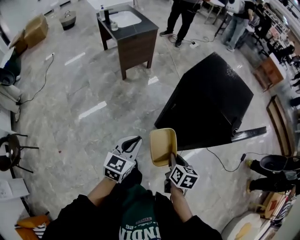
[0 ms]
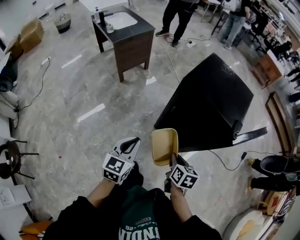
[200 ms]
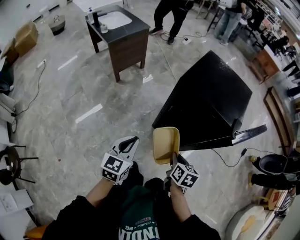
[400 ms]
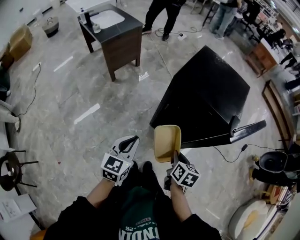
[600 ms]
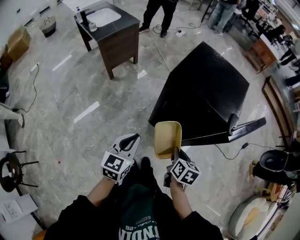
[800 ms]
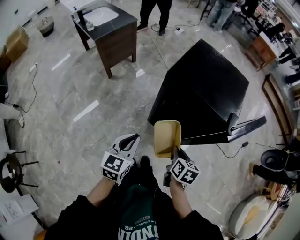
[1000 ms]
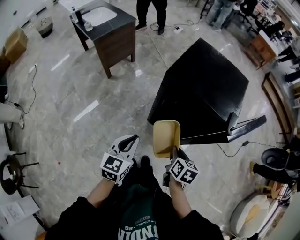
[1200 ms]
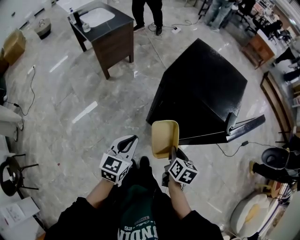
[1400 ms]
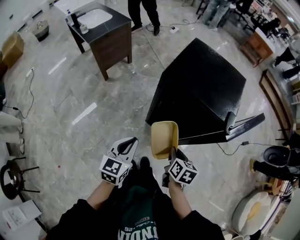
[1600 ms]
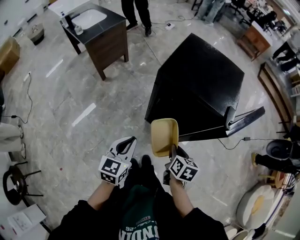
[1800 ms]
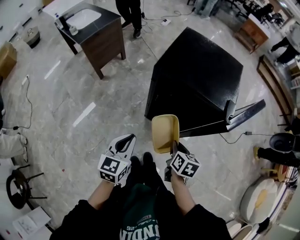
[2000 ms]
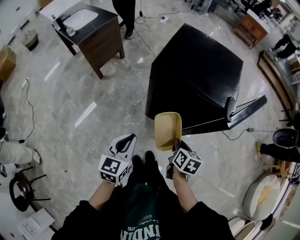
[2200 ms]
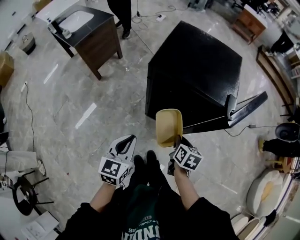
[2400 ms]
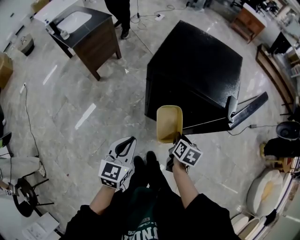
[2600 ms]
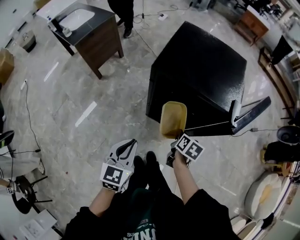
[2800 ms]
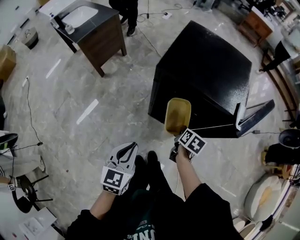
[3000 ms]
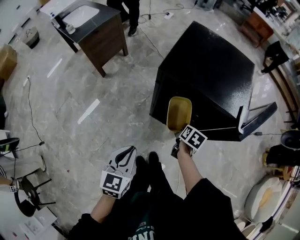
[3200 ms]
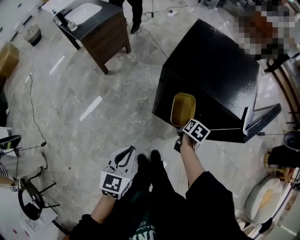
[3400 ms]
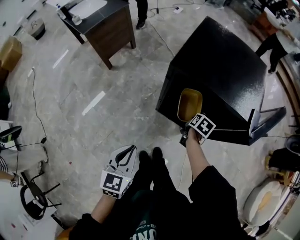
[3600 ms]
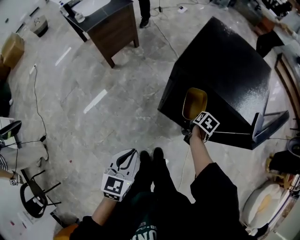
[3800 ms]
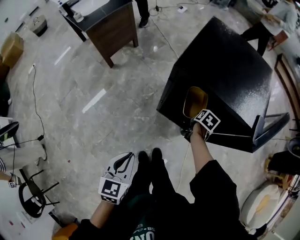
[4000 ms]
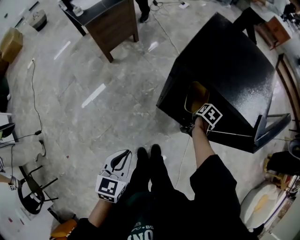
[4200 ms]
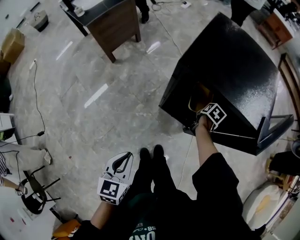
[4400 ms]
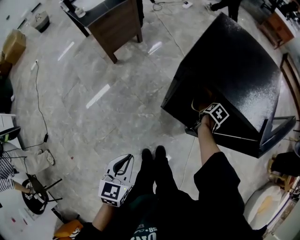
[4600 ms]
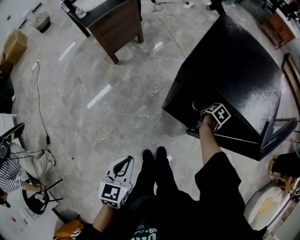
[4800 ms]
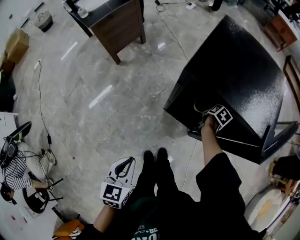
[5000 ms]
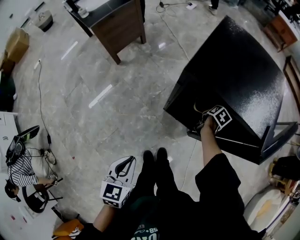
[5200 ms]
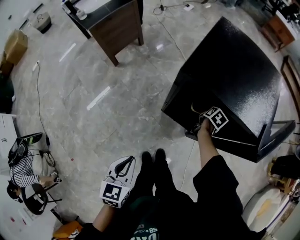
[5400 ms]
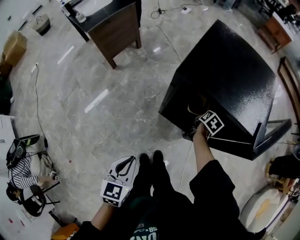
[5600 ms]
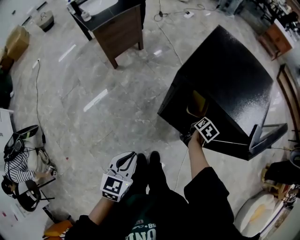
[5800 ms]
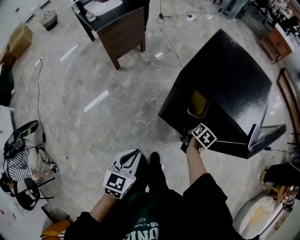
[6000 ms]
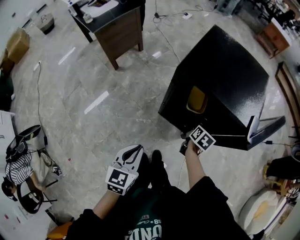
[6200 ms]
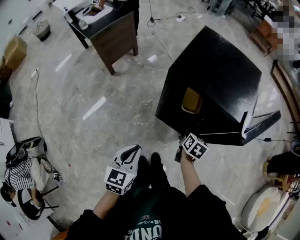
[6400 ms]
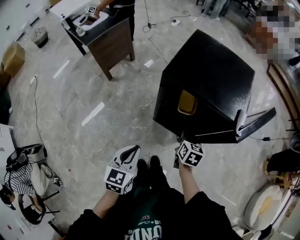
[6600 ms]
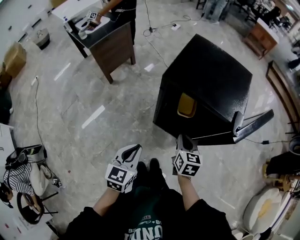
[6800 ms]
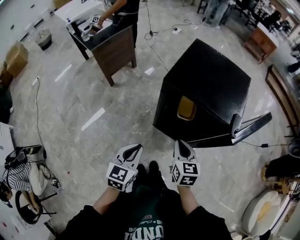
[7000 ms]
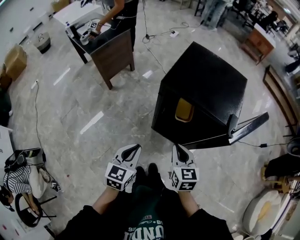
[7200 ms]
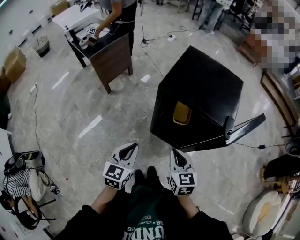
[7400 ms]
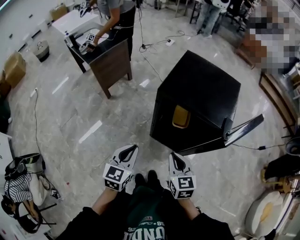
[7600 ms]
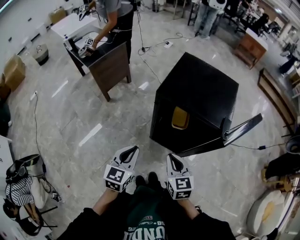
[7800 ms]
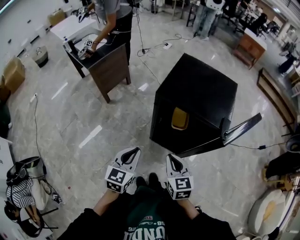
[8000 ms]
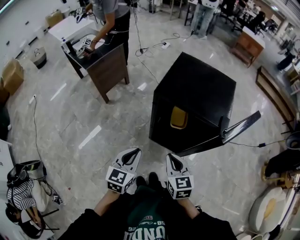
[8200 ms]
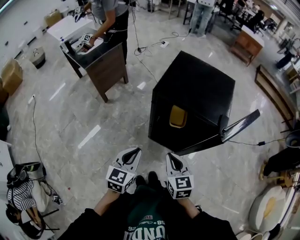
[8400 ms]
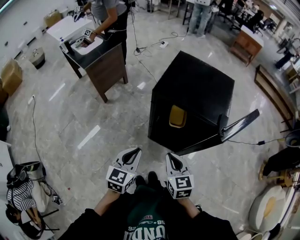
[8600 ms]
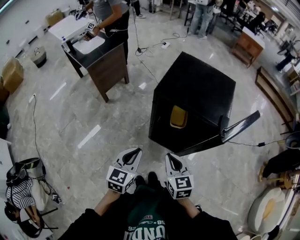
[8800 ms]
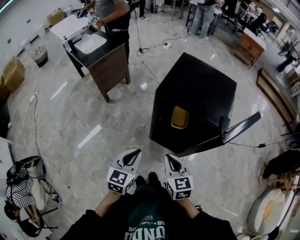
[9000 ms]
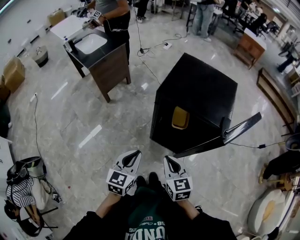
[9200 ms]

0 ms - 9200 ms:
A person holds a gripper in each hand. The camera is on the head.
0 ms - 1600 ms: The grippers both shift forward by some 5 cm.
1600 ms - 3000 ms: The right gripper heads forward and downward, covering roughly 15 cm.
3000 ms - 4600 ms: The left gripper goes some 10 cm downward and backward. Meanwhile the right gripper goes some 20 cm forward and downward.
4600 ms - 6200 ms: The right gripper shifts some 10 cm backward and upward, while the left gripper shifts by approximately 5 cm.
6200 ms - 7600 ms: The left gripper travels upward by roughly 5 cm. Meanwhile the right gripper moves upward, backward and to the left, some 25 cm, and turns by approximately 50 degrees.
7600 ms - 9200 ms: The grippers make only small movements.

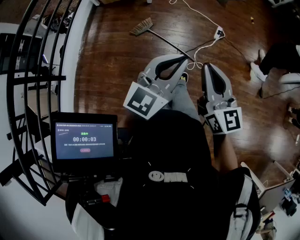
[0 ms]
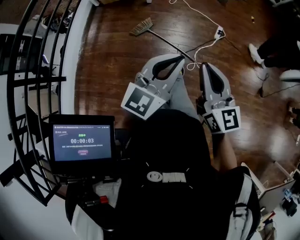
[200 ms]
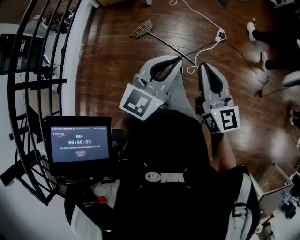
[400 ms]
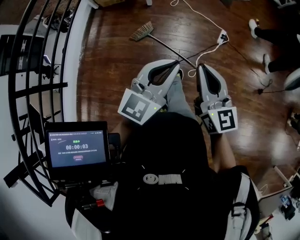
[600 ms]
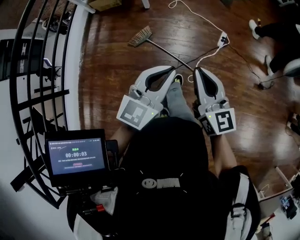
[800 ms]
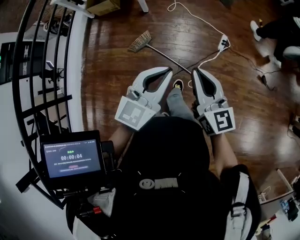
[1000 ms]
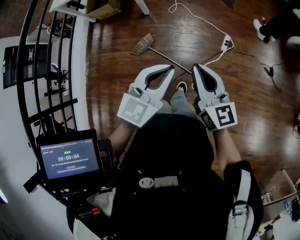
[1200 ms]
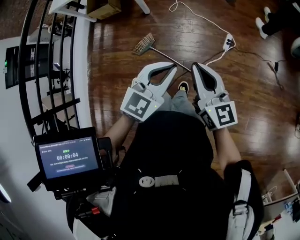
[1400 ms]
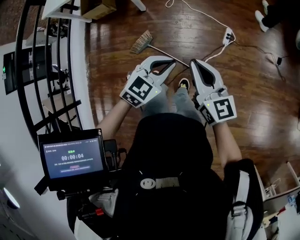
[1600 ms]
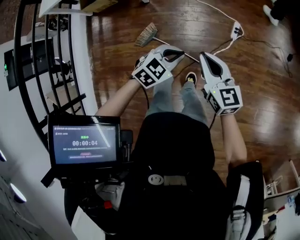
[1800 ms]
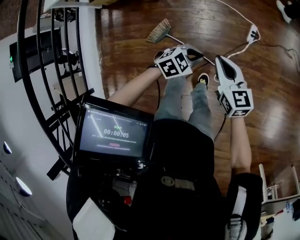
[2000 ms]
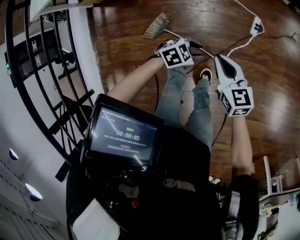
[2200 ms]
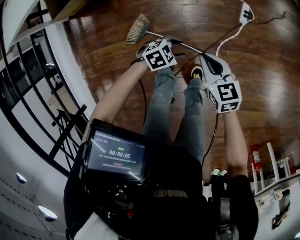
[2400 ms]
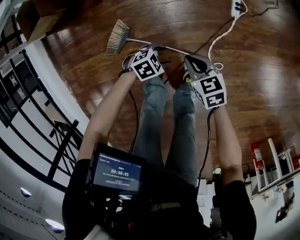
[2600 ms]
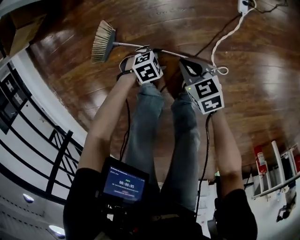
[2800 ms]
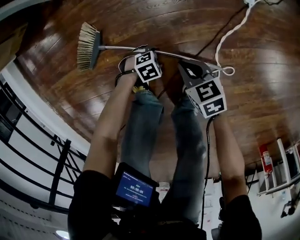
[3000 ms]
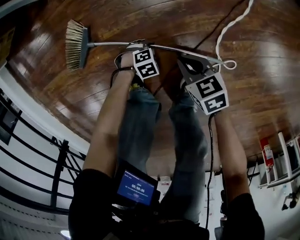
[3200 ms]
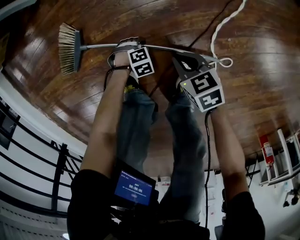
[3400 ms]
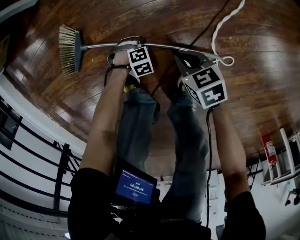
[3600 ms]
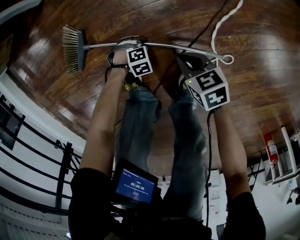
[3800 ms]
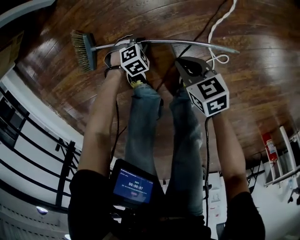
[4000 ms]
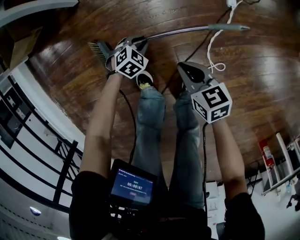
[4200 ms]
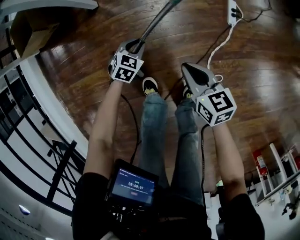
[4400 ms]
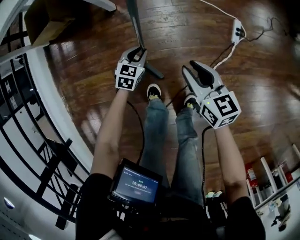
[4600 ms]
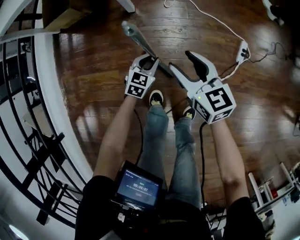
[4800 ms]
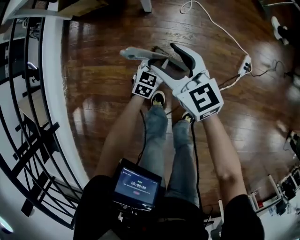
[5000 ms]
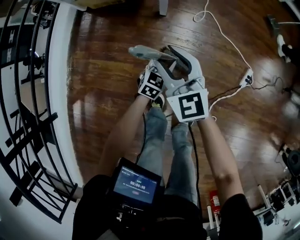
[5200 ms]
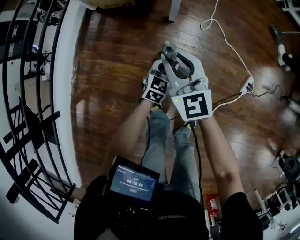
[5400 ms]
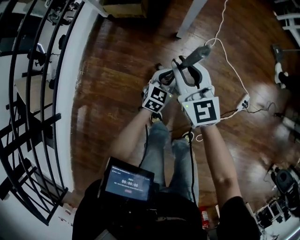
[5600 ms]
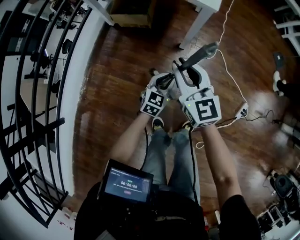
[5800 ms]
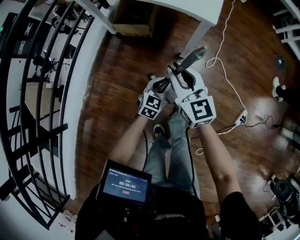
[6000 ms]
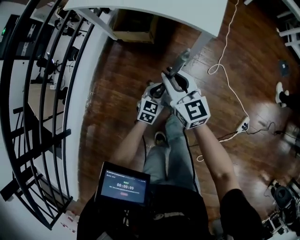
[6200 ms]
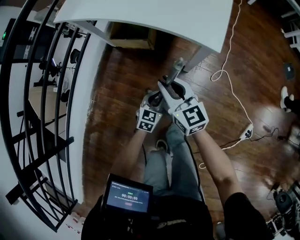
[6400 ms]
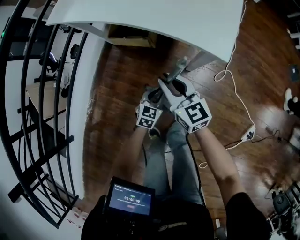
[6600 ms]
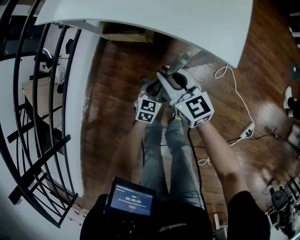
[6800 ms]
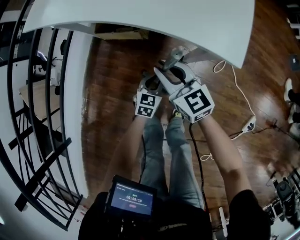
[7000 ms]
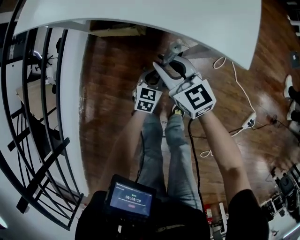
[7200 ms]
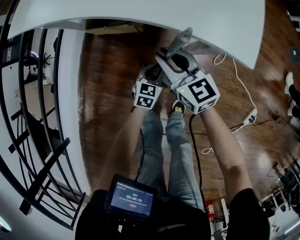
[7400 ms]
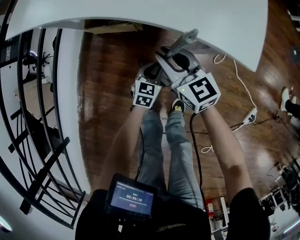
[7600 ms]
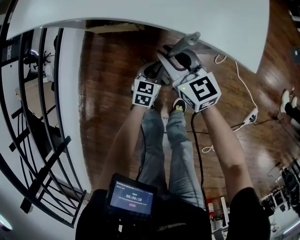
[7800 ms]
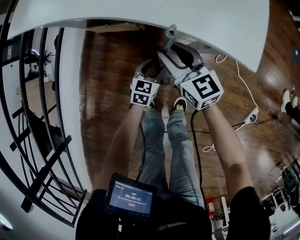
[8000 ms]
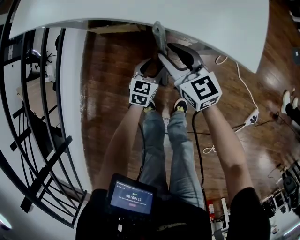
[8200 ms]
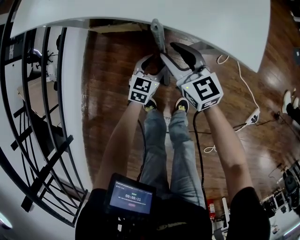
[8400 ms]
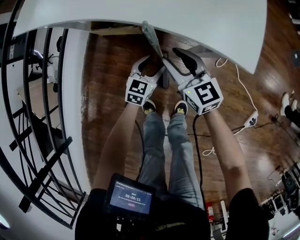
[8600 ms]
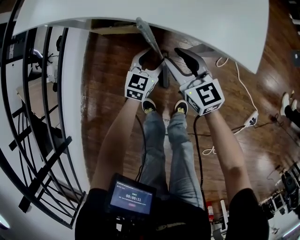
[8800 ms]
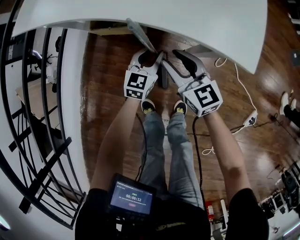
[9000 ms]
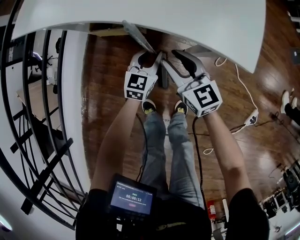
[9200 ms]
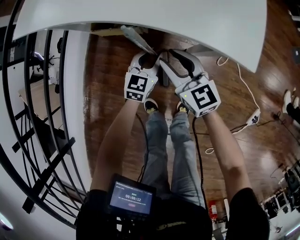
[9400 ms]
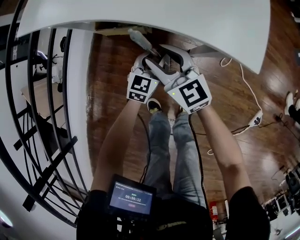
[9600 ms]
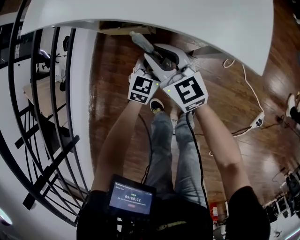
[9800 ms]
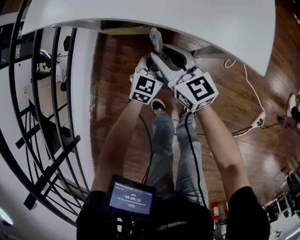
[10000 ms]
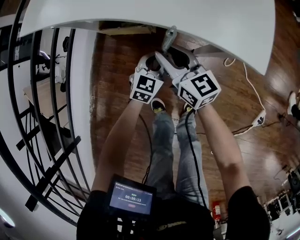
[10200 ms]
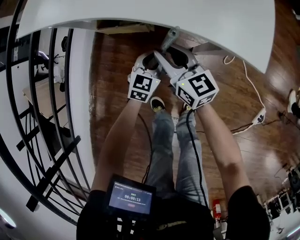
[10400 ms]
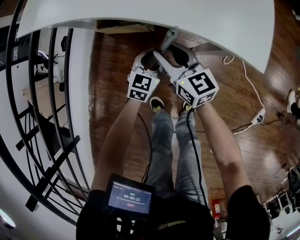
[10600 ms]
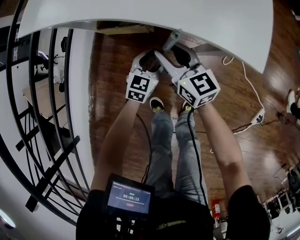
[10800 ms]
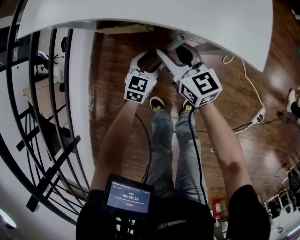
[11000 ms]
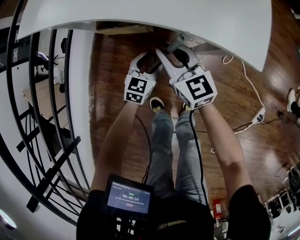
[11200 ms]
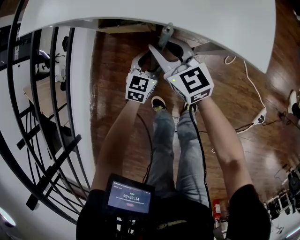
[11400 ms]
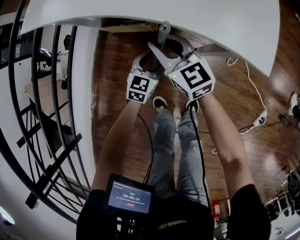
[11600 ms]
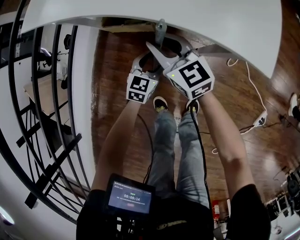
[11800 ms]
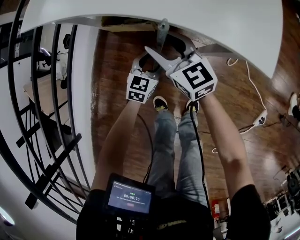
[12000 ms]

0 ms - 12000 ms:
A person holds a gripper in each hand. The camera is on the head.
0 ms - 1600 ms: The grippers both shift backward by about 15 cm. The left gripper points its fingers some 30 degrees further downward.
1600 ms - 3000 ms: The grippers both shift downward by roughly 70 cm. The left gripper swivels approximately 60 degrees, and opens, while the right gripper tips its fingers downward by about 40 degrees.
3000 ms - 4400 ms: The two grippers go about 25 cm upward. The right gripper swivels some 20 degrees. Meanwhile the left gripper rotates roughly 50 degrees, and closes up.
4400 ms - 6000 ms: The left gripper changes place by approximately 40 cm, and changes its angle by roughly 40 degrees. Meanwhile the right gripper ends up some 60 cm from where it was, turns by approximately 50 degrees, and opens, then closes once more.
6000 ms - 7600 ms: Both grippers travel together forward and downward, roughly 30 cm.
7600 ms - 9000 ms: The left gripper travels upward and forward by roughly 10 cm, and opens, then closes once more.
9000 ms - 10400 ms: The right gripper shifts some 5 cm to the left.
10400 ms - 12000 ms: The left gripper opens, while the right gripper ends up roughly 5 cm from where it was, and opens up.

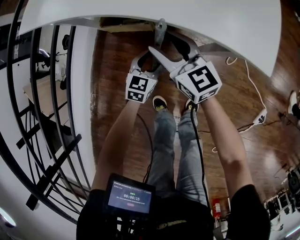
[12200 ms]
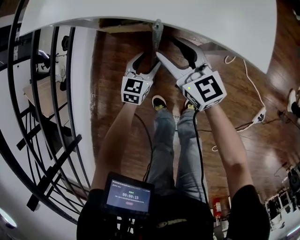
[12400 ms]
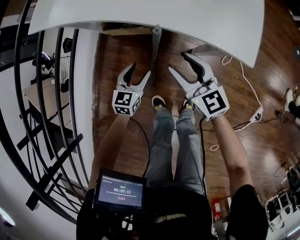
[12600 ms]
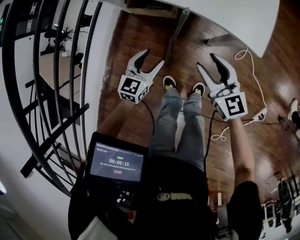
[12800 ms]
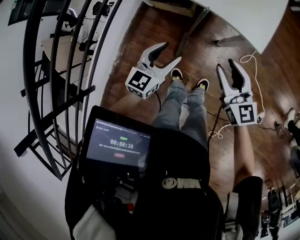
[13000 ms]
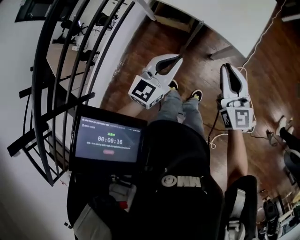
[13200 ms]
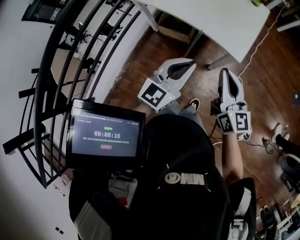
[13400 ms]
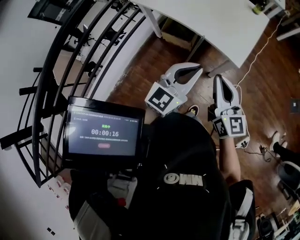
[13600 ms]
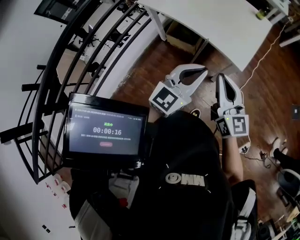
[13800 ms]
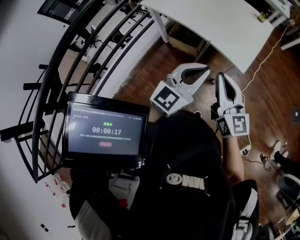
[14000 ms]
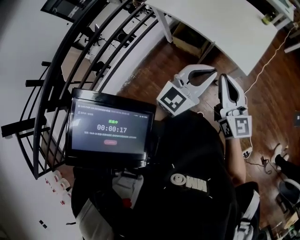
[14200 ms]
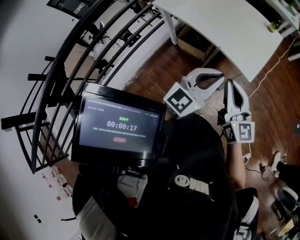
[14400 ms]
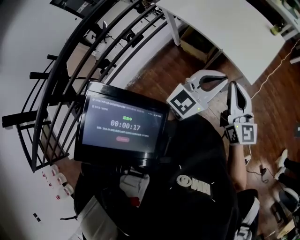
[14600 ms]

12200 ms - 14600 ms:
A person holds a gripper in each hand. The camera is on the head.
12200 ms - 13400 ms: The left gripper is displaced upward by roughly 50 cm, tips its fingers upward by about 30 degrees, and closes up. Meanwhile the right gripper goes approximately 40 cm upward and backward, and closes up.
13400 ms - 14600 ms: The left gripper changes place by roughly 5 cm.
